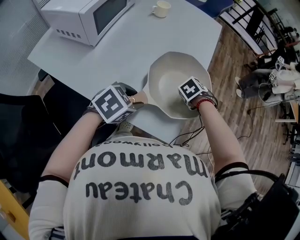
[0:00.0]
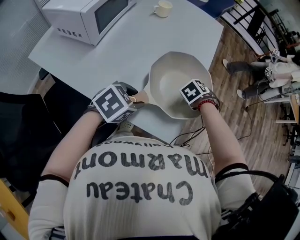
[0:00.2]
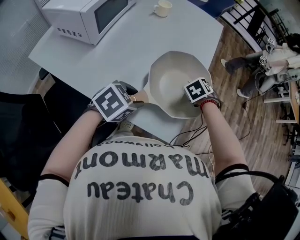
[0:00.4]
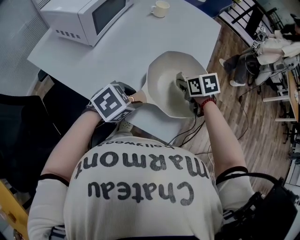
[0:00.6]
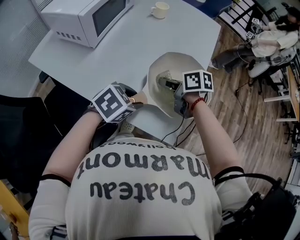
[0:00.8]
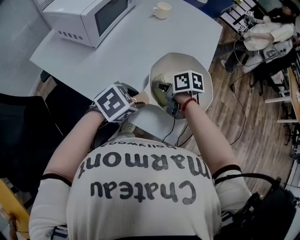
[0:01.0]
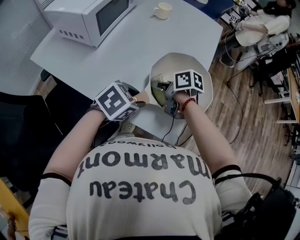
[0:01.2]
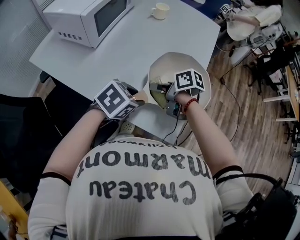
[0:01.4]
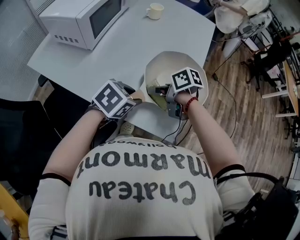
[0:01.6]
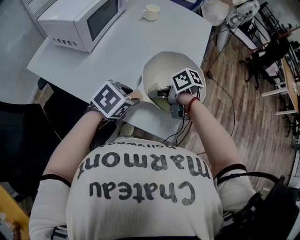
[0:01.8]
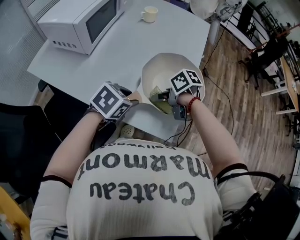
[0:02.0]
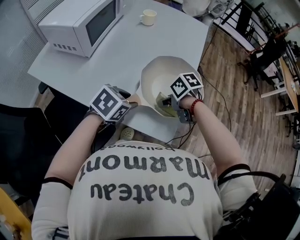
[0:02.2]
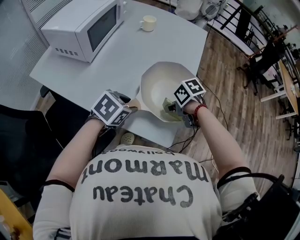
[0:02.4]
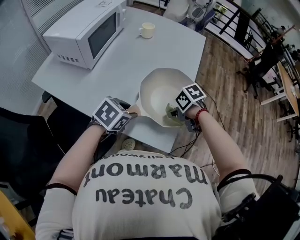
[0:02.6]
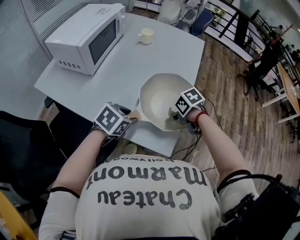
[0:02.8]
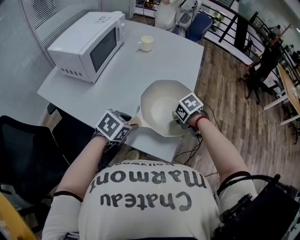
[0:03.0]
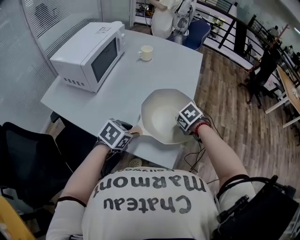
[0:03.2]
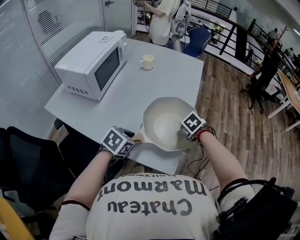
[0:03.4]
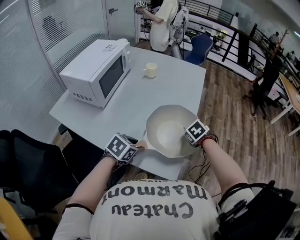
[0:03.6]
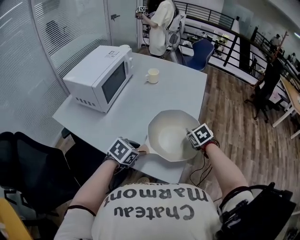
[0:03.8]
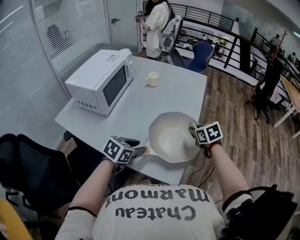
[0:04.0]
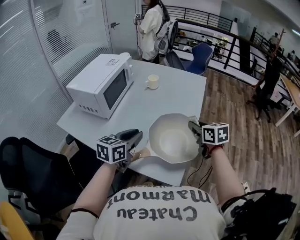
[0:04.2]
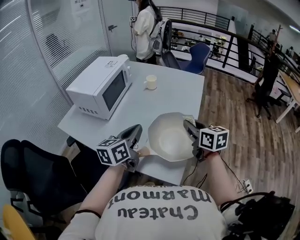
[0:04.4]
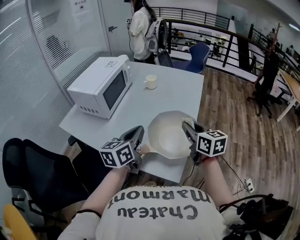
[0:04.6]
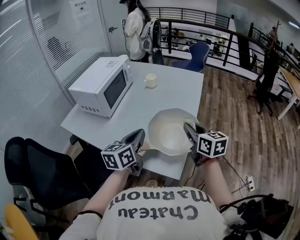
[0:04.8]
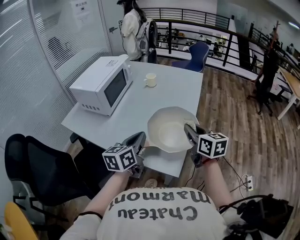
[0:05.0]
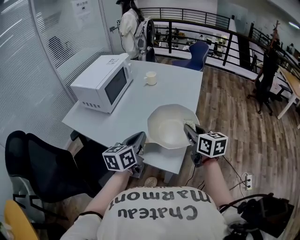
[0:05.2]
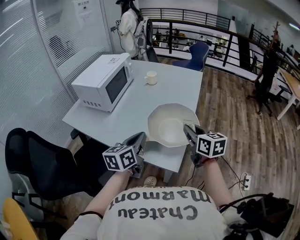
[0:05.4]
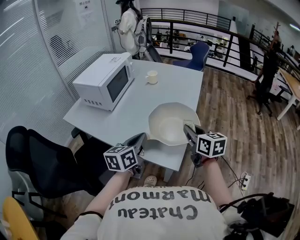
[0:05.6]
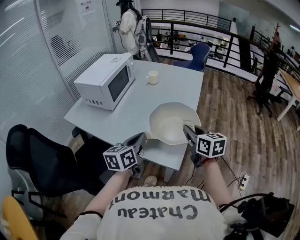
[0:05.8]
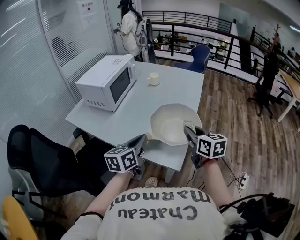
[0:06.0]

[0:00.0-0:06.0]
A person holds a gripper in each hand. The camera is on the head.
0:00.0 to 0:01.6: The right gripper moves about 20 cm, and tips its fingers upward by about 40 degrees.
0:01.6 to 0:03.0: The right gripper shifts by approximately 15 cm, and tilts its fingers some 40 degrees downward.
0:03.0 to 0:04.4: The two grippers go approximately 20 cm upward. The left gripper points its fingers roughly 40 degrees further upward, and closes up; the right gripper angles its fingers upward, by some 60 degrees.
0:04.4 to 0:06.0: The grippers both shift backward by approximately 10 cm.

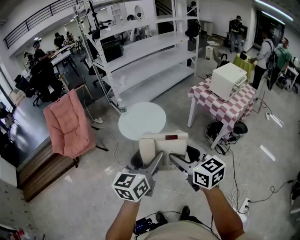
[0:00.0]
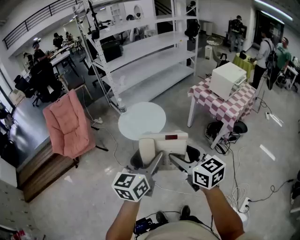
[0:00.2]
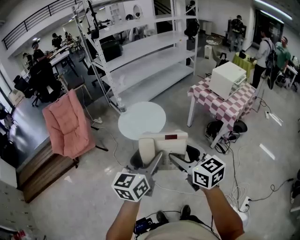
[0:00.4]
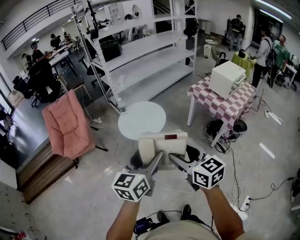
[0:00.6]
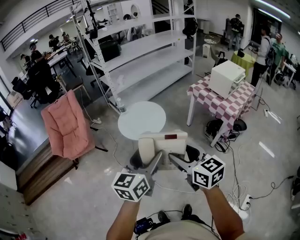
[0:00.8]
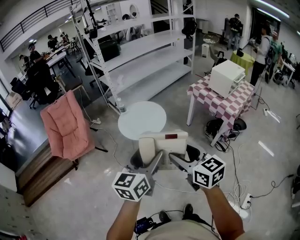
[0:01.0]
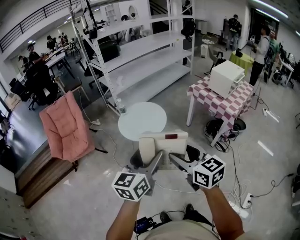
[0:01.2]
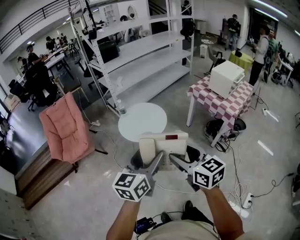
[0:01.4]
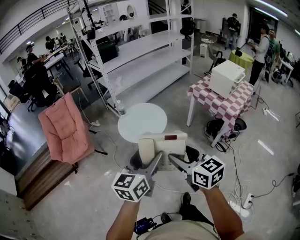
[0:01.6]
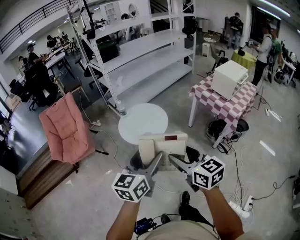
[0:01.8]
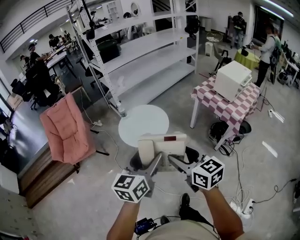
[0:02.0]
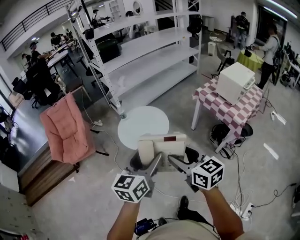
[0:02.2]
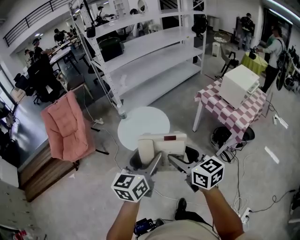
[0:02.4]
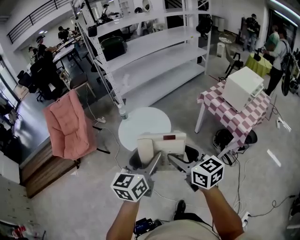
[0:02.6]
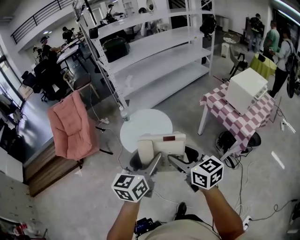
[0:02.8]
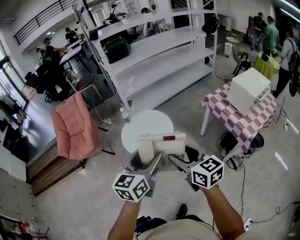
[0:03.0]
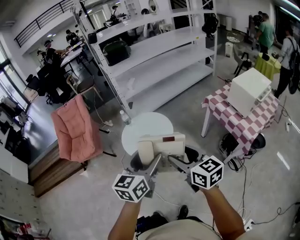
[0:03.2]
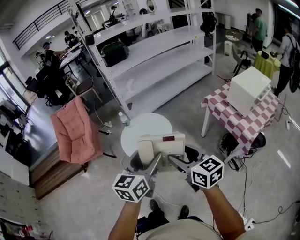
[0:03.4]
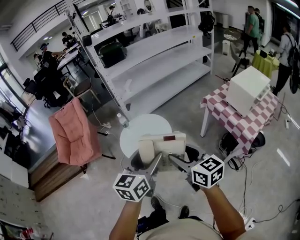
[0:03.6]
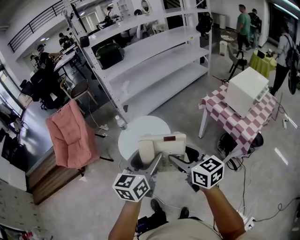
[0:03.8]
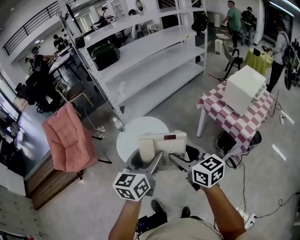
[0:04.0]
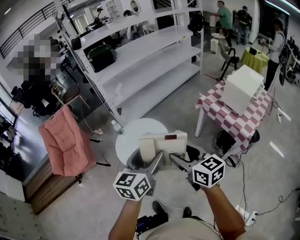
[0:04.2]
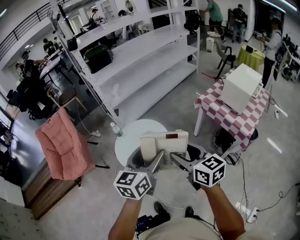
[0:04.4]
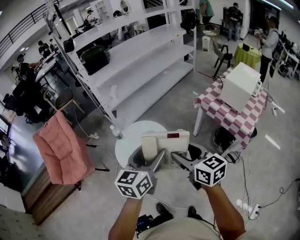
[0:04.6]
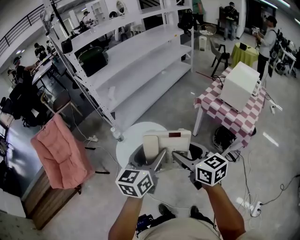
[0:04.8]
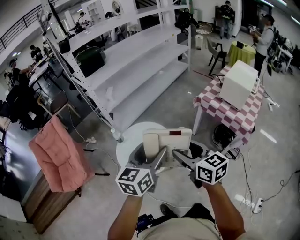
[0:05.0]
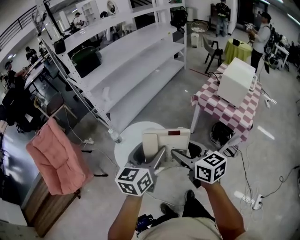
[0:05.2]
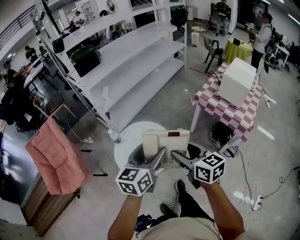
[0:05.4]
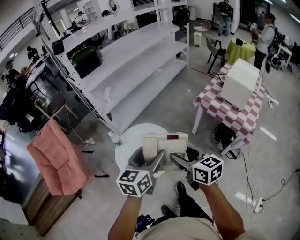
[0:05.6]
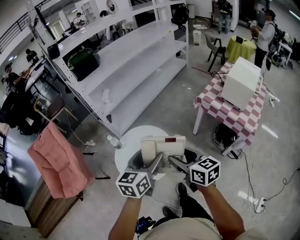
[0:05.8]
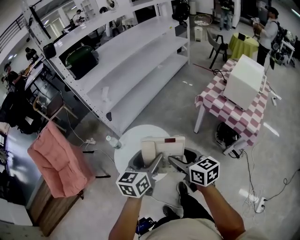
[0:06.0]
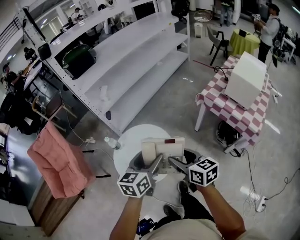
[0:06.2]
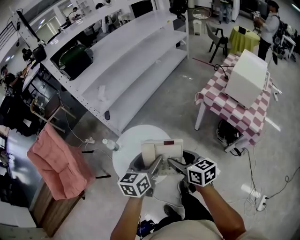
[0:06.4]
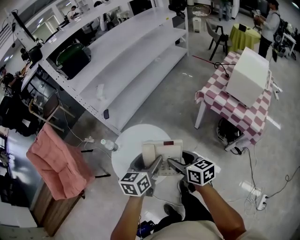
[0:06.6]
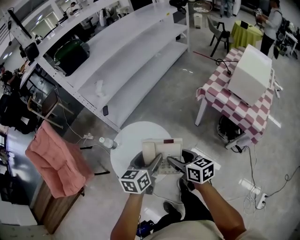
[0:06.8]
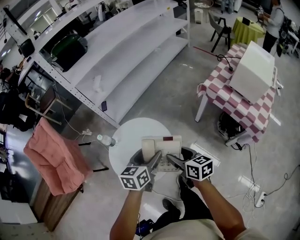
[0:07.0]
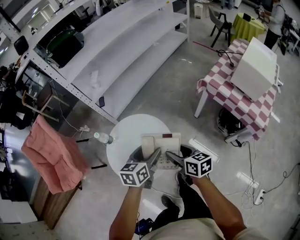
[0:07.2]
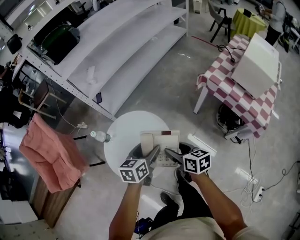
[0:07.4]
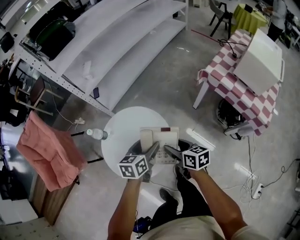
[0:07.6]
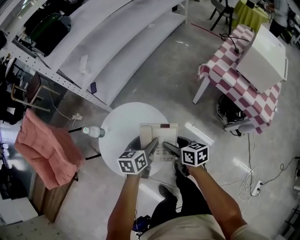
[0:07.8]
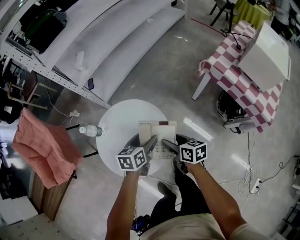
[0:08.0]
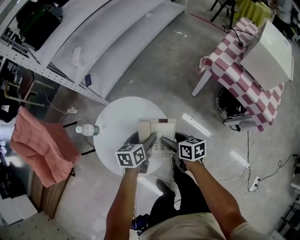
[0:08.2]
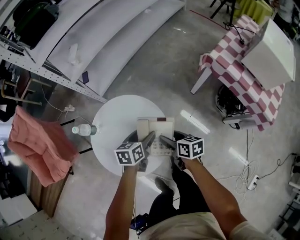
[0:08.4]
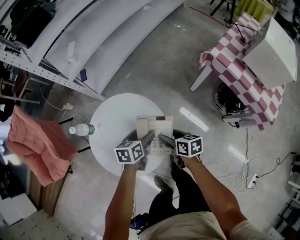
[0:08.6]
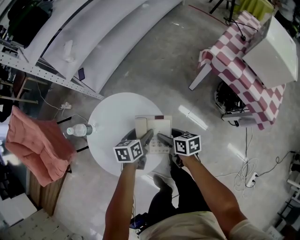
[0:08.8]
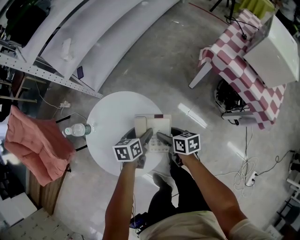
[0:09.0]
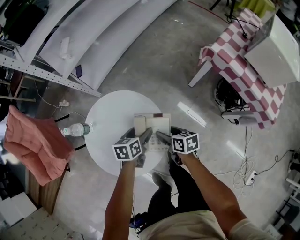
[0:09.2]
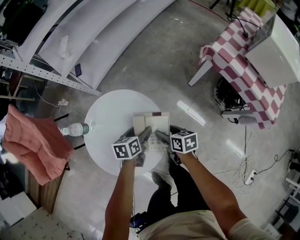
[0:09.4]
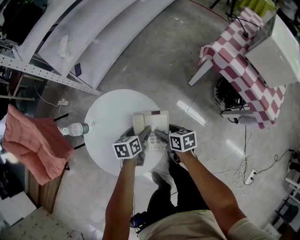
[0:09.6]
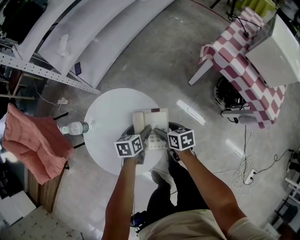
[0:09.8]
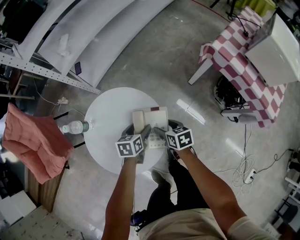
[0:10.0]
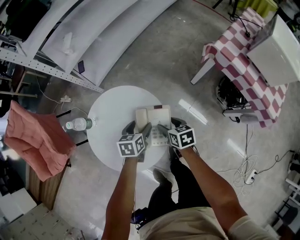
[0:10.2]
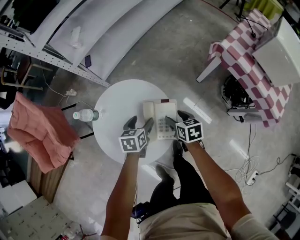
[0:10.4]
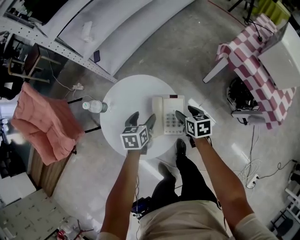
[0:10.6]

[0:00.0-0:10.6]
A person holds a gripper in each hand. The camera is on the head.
0:00.0 to 0:01.6: The right gripper shifts by roughly 5 cm; the left gripper moves about 5 cm.
0:01.6 to 0:03.0: Both grippers move forward and to the right, approximately 20 cm.
0:03.0 to 0:04.6: Both grippers travel together forward, roughly 15 cm.
0:04.6 to 0:06.0: Both grippers travel together forward and downward, roughly 15 cm.
0:06.0 to 0:07.6: The grippers both shift downward and forward by about 25 cm. The left gripper swivels roughly 20 degrees.
0:07.6 to 0:09.0: The grippers both shift downward by roughly 15 cm.
0:09.0 to 0:10.6: The left gripper travels to the left by some 5 cm. The right gripper swivels roughly 20 degrees.

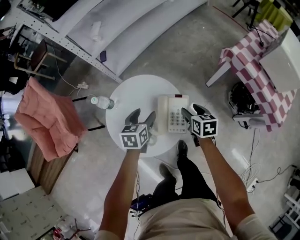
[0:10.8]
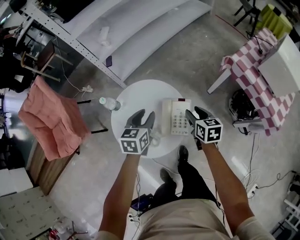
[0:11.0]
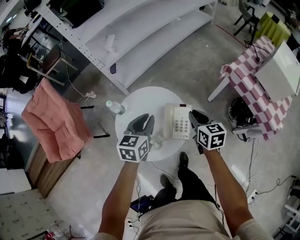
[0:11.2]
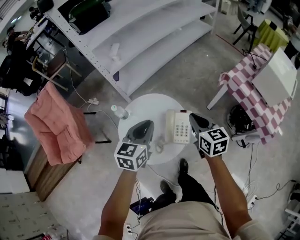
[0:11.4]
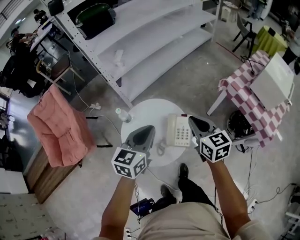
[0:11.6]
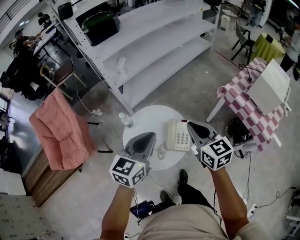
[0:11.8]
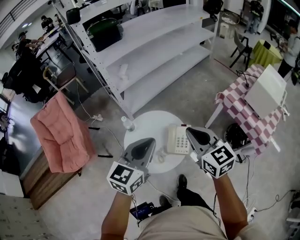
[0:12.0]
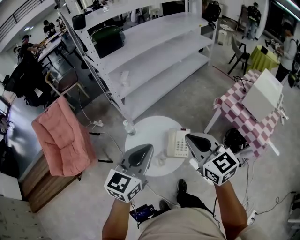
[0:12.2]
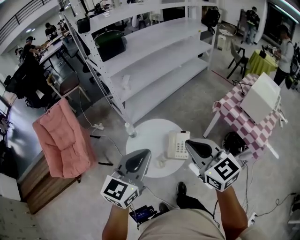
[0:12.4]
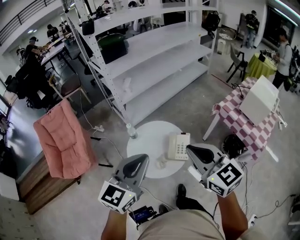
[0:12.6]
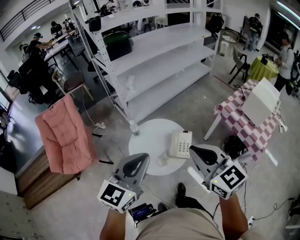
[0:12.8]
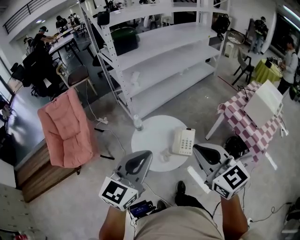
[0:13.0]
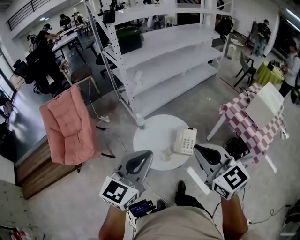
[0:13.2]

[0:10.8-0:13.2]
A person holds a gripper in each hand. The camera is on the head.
0:10.8 to 0:12.0: The right gripper shifts roughly 40 cm upward, tips its fingers upward by about 30 degrees, and closes its fingers, while the left gripper travels upward and backward by about 40 cm, angles its fingers upward, by approximately 30 degrees, and closes its fingers.
0:12.0 to 0:13.2: The two grippers go roughly 20 cm backward, upward and to the left.

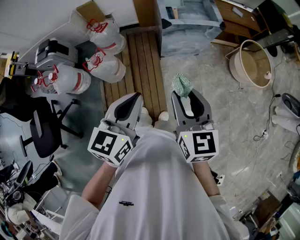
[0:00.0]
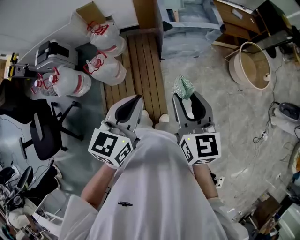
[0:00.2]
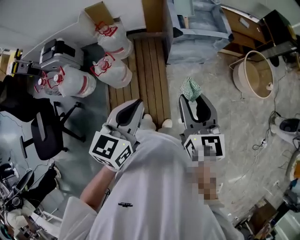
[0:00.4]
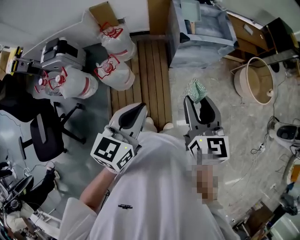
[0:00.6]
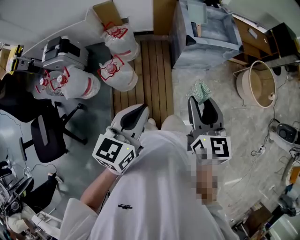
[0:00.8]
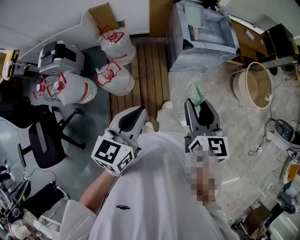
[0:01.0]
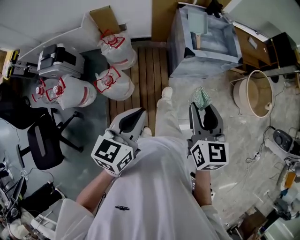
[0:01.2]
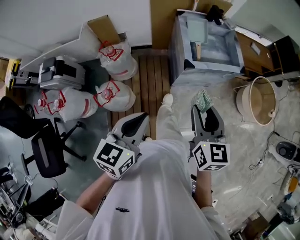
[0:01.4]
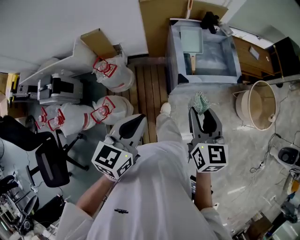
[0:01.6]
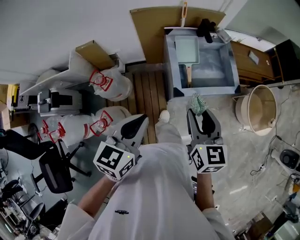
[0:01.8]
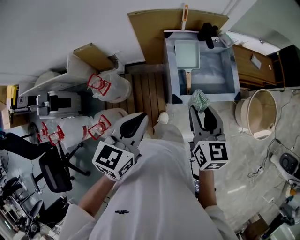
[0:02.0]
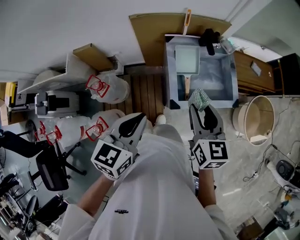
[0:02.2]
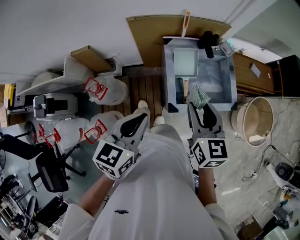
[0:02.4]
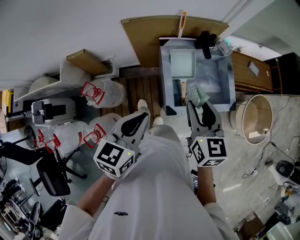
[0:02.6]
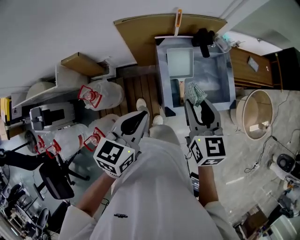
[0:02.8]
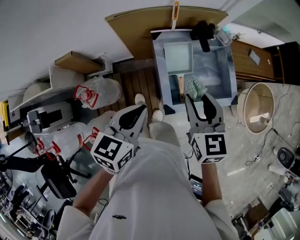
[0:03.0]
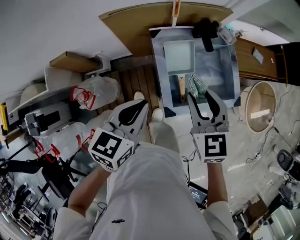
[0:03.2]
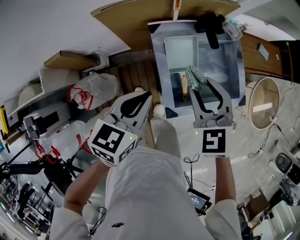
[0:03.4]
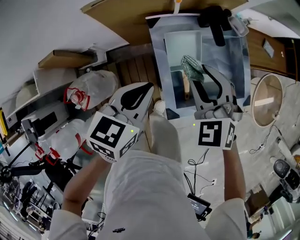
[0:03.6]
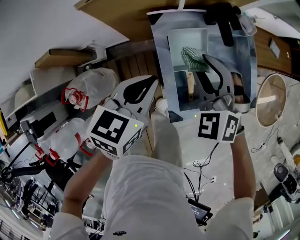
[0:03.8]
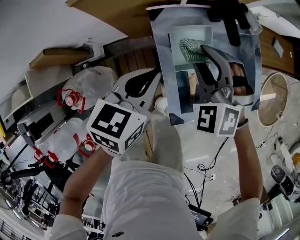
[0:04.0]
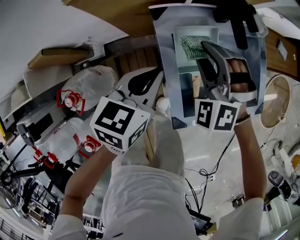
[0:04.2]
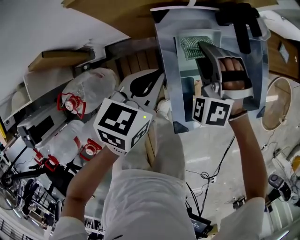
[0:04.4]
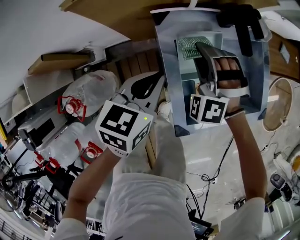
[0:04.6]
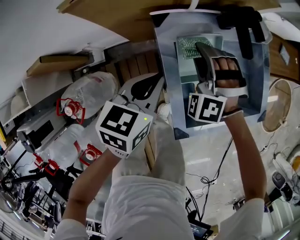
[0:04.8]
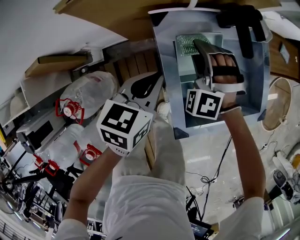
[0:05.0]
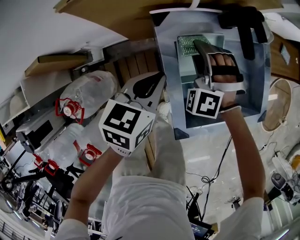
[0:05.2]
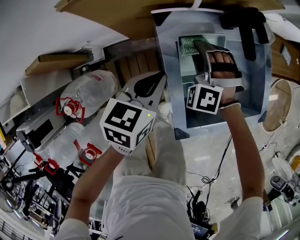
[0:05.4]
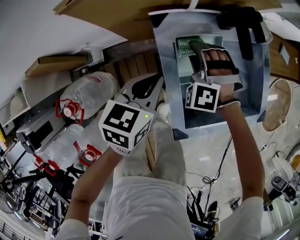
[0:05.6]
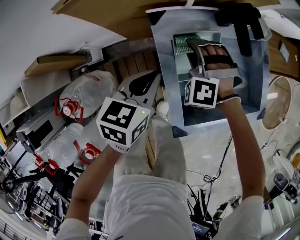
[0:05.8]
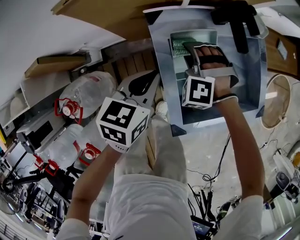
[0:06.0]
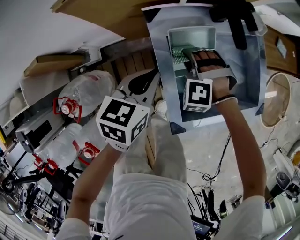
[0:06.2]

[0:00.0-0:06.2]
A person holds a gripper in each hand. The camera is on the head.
0:00.0 to 0:01.6: Both grippers move forward, approximately 30 cm.
0:01.6 to 0:03.2: Both grippers travel together forward, some 35 cm. The right gripper turns by approximately 20 degrees.
0:03.2 to 0:04.6: The two grippers go some 25 cm downward and forward. The right gripper twists some 70 degrees counterclockwise, seen from behind.
0:04.6 to 0:06.2: The right gripper moves downward, some 10 cm, and turns by about 20 degrees.
